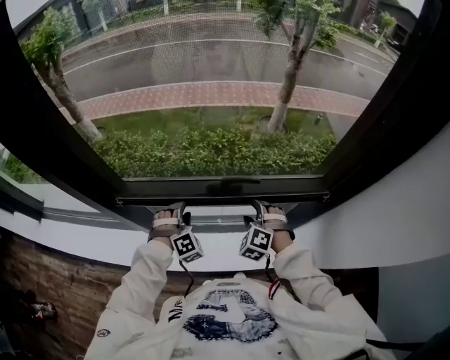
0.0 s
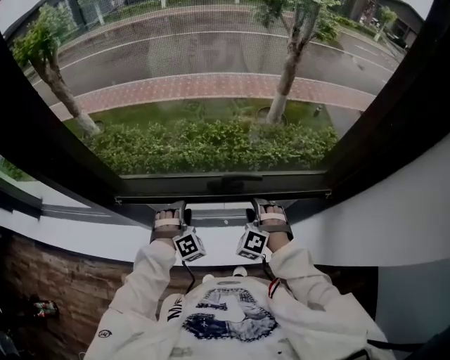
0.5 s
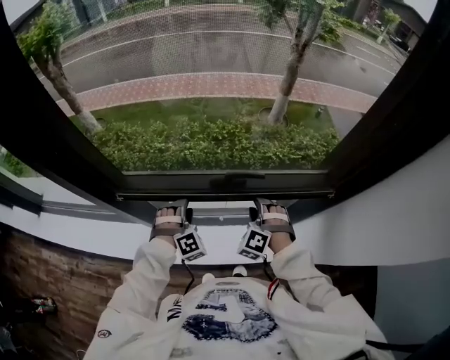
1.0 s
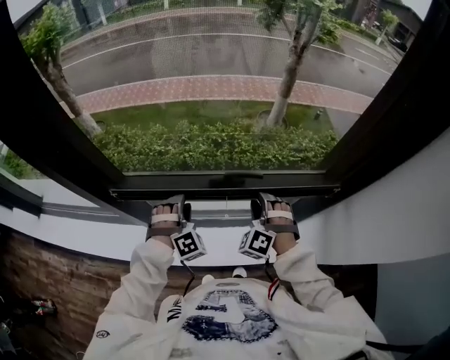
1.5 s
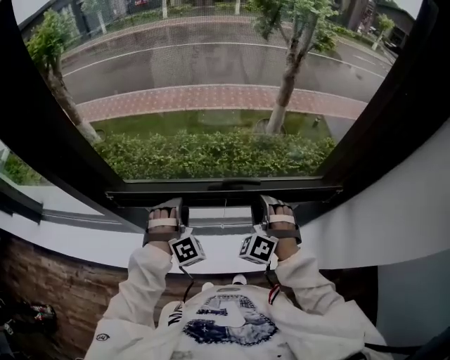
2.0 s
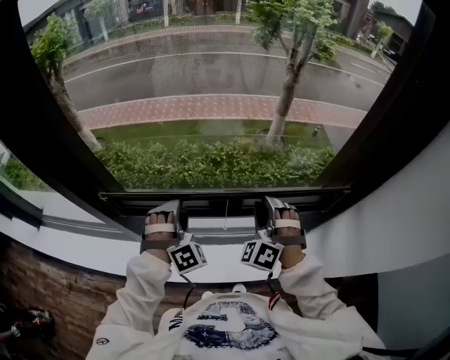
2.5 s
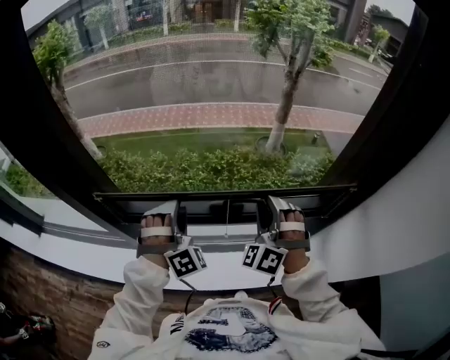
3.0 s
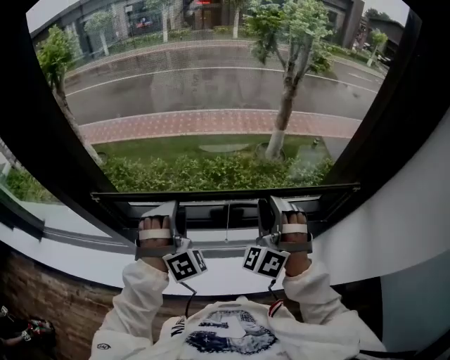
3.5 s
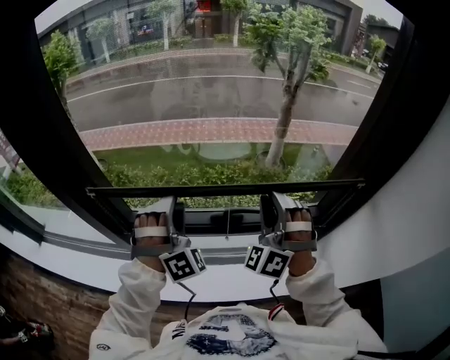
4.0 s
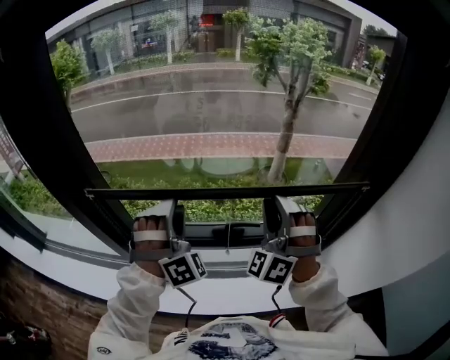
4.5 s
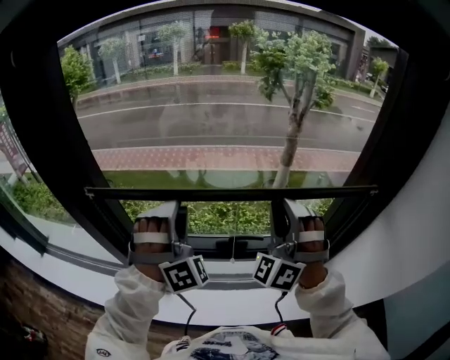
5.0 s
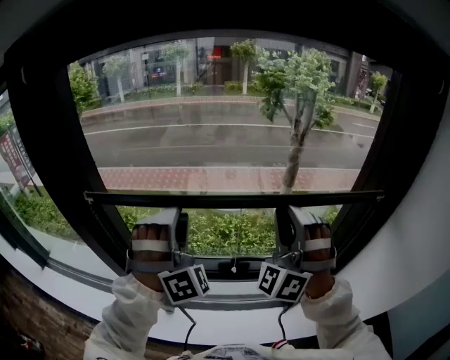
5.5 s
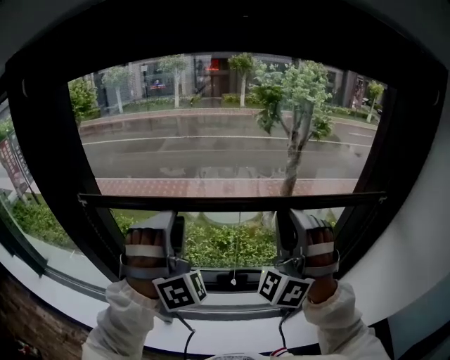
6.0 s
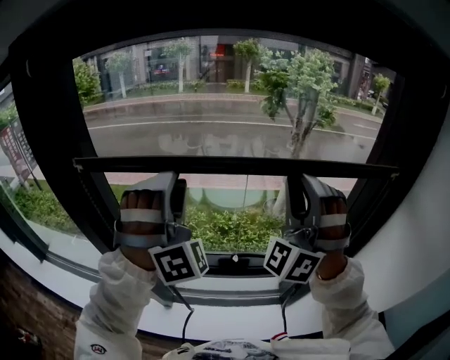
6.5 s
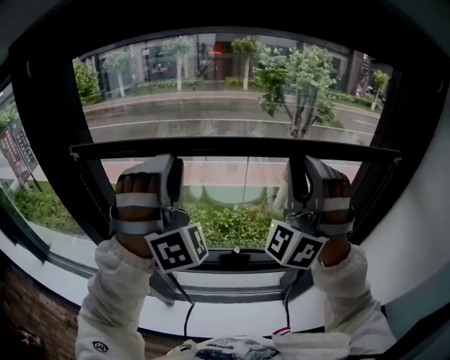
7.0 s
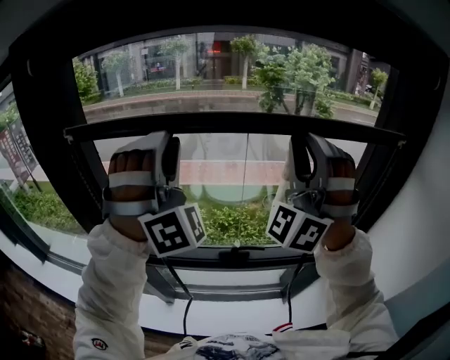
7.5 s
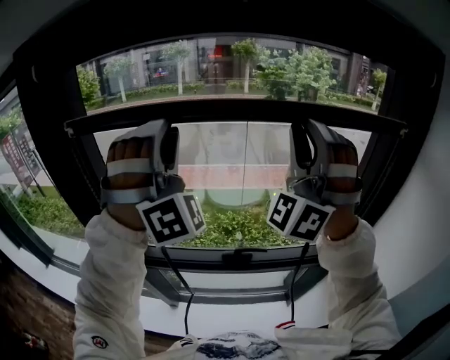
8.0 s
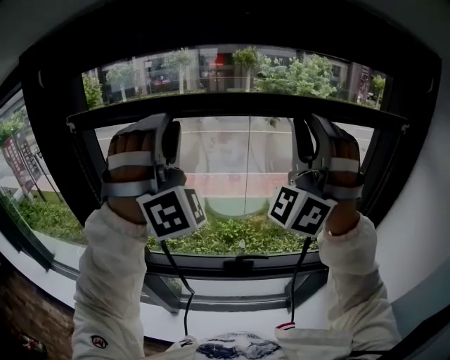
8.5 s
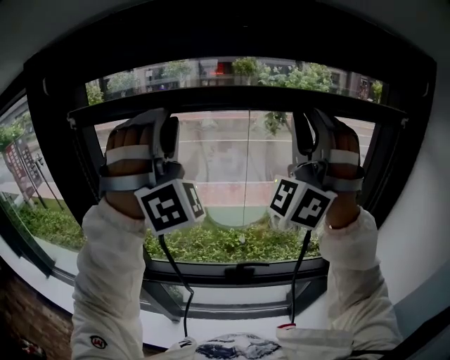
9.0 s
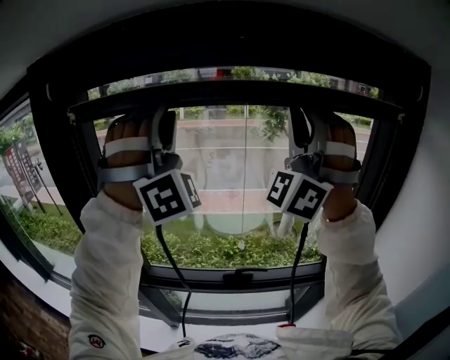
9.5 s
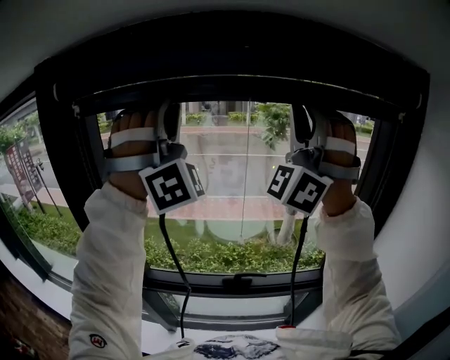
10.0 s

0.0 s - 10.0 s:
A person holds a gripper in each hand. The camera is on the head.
0.0 s - 2.0 s: Both grippers move upward, about 10 cm. The right gripper rotates approximately 20 degrees, and closes its fingers.
2.0 s - 4.0 s: Both grippers travel together upward, about 20 cm. The right gripper changes its angle by about 20 degrees.
4.0 s - 6.0 s: The two grippers go about 10 cm upward.
6.0 s - 8.0 s: Both grippers travel together upward, roughly 20 cm.
8.0 s - 10.0 s: The two grippers go roughly 10 cm upward.

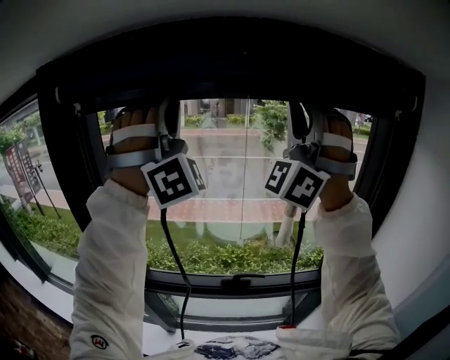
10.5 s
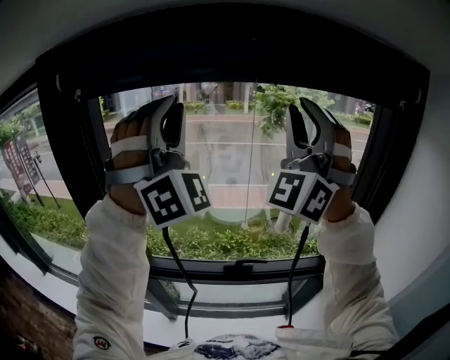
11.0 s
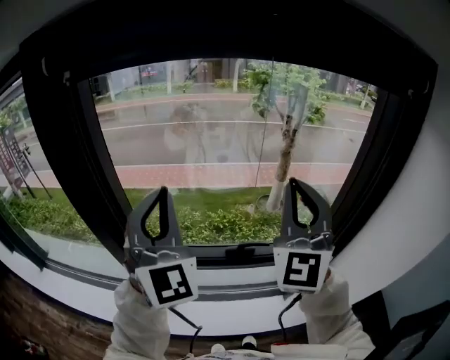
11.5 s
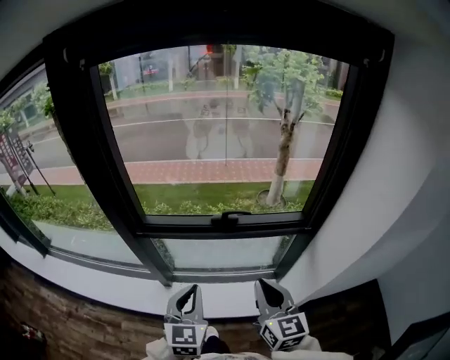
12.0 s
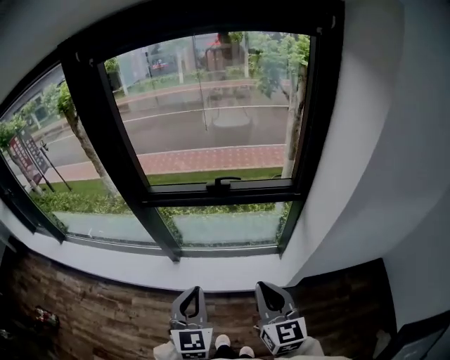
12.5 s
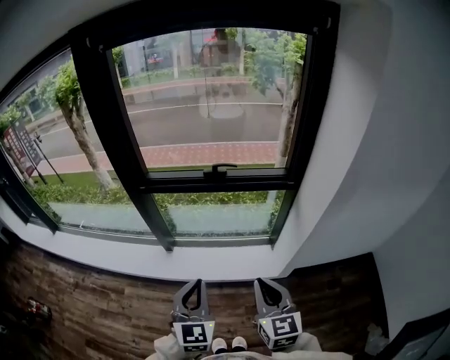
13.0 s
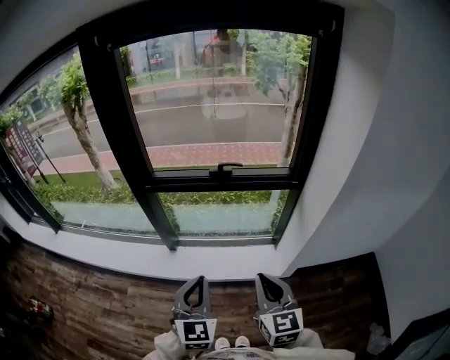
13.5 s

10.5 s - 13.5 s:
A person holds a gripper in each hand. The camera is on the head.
10.5 s - 12.0 s: The grippers both shift downward and backward by about 60 cm. The right gripper twists some 90 degrees clockwise, seen from behind, and closes its fingers. The left gripper rotates around the line of its fingers by some 80 degrees, counterclockwise from behind, and closes its fingers.
12.0 s - 13.5 s: Both grippers travel together backward, approximately 25 cm.

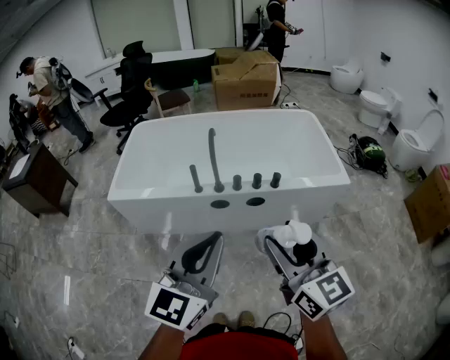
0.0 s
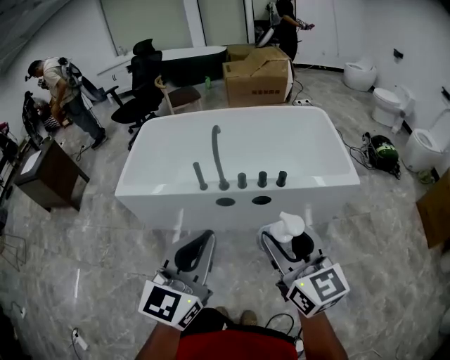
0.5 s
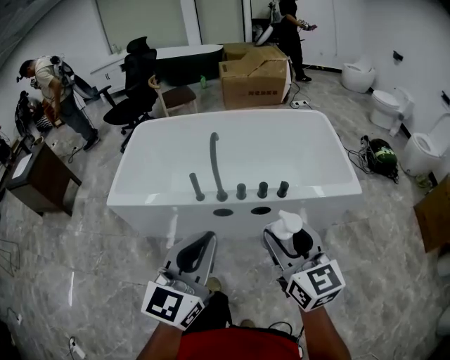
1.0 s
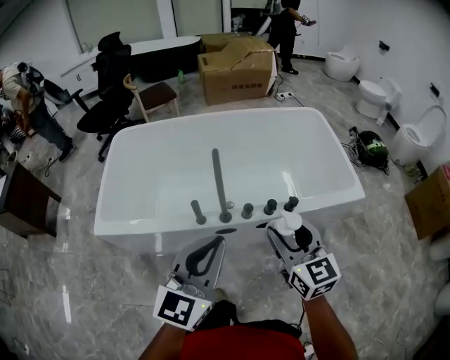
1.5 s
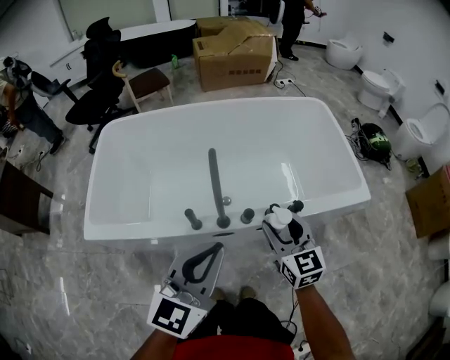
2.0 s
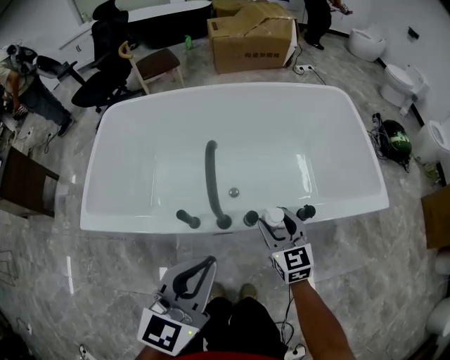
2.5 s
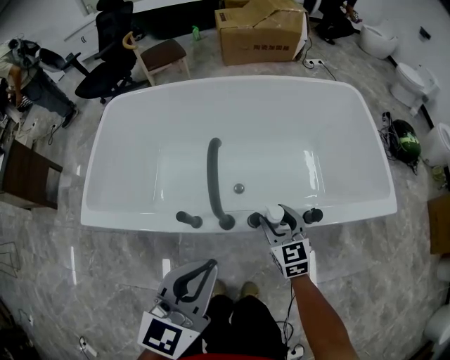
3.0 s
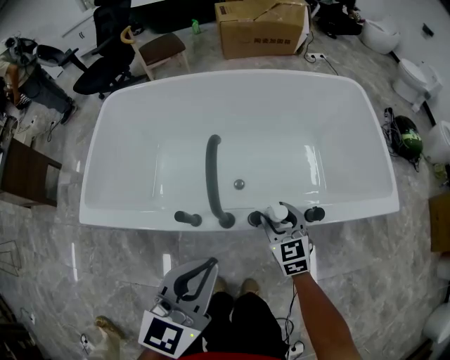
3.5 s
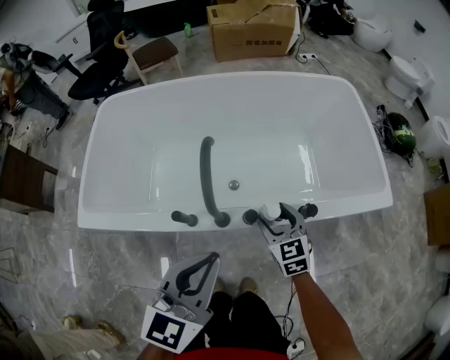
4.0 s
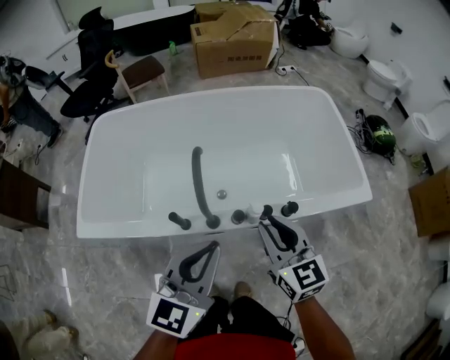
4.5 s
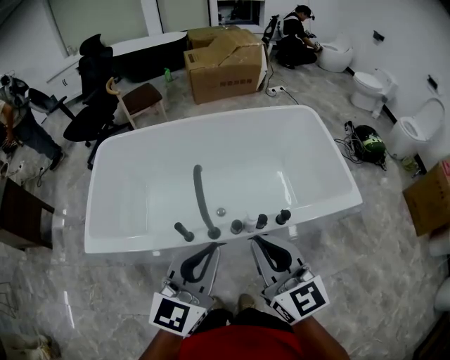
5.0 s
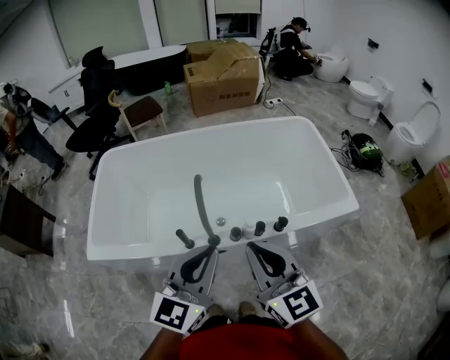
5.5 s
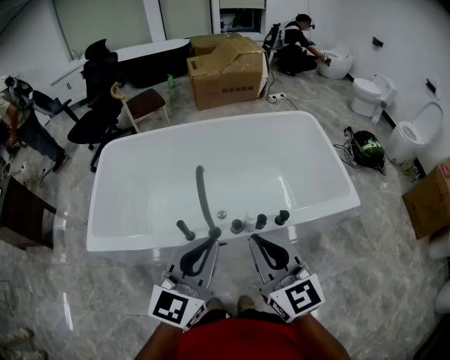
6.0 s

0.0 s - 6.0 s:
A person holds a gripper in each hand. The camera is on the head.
0.0 s - 2.0 s: The left gripper goes roughly 30 cm forward; the right gripper goes about 40 cm forward and downward.
2.0 s - 4.0 s: The right gripper travels downward and forward by approximately 20 cm. Meanwhile the left gripper heads downward and forward, covering some 10 cm.
4.0 s - 6.0 s: The right gripper is displaced upward and backward by about 35 cm, swivels some 30 degrees, and closes. Meanwhile the left gripper travels upward by about 15 cm.

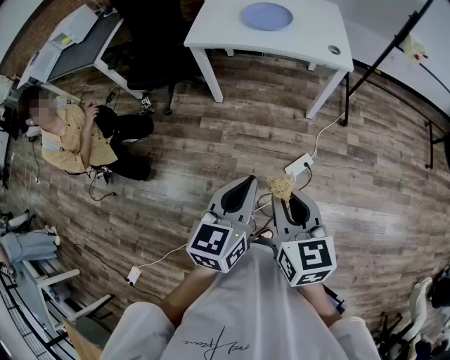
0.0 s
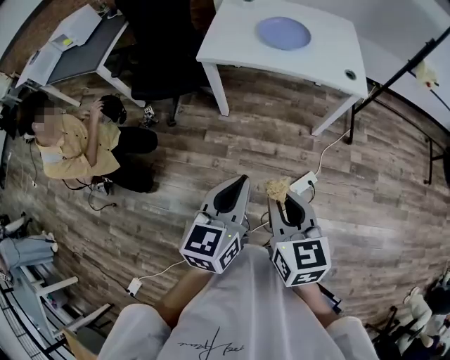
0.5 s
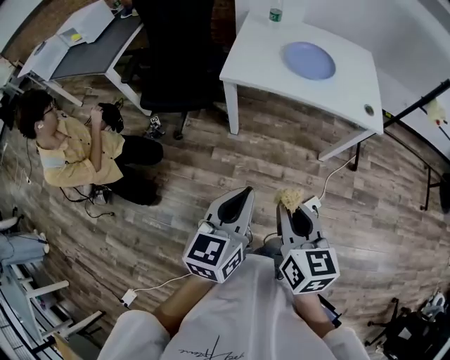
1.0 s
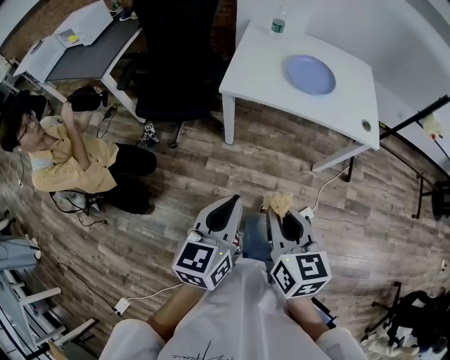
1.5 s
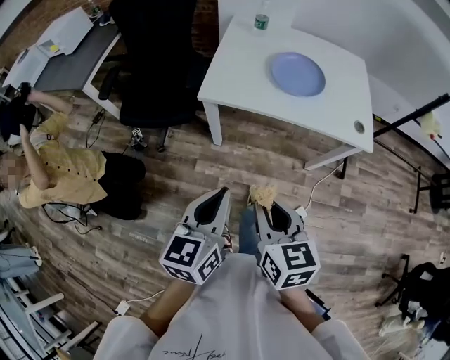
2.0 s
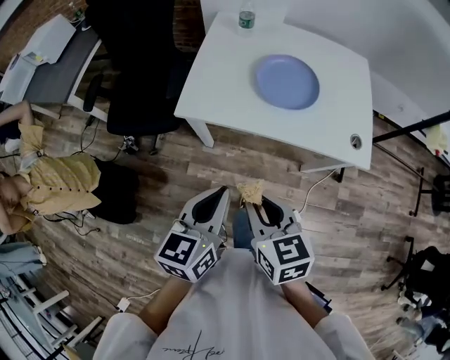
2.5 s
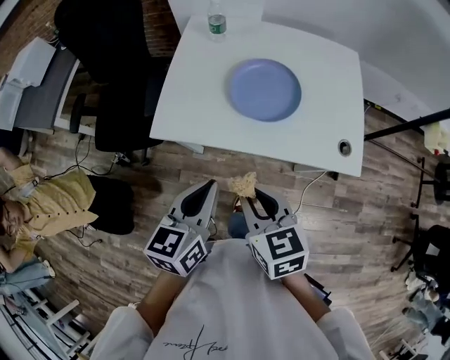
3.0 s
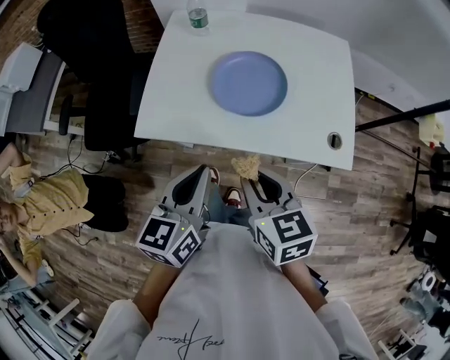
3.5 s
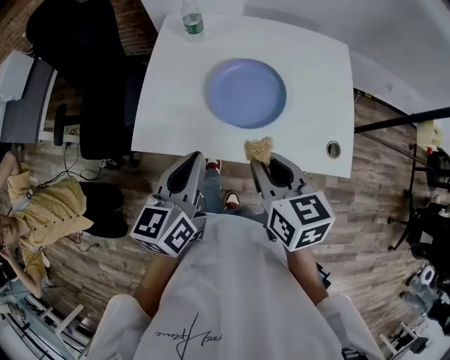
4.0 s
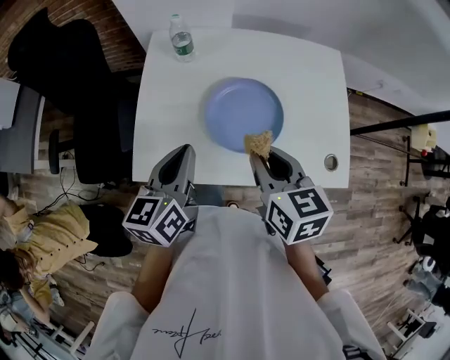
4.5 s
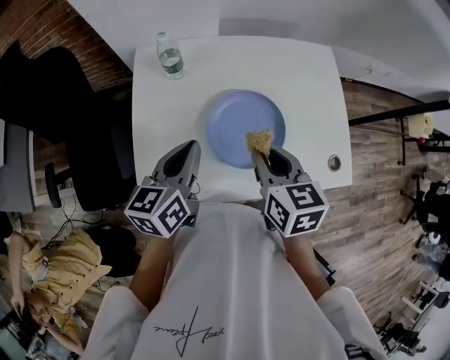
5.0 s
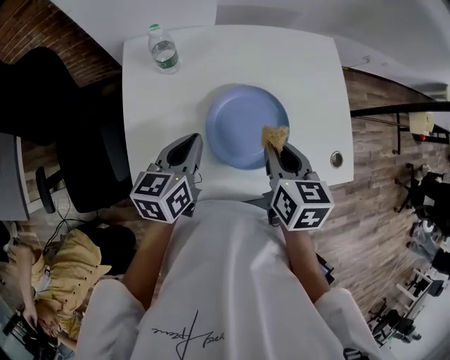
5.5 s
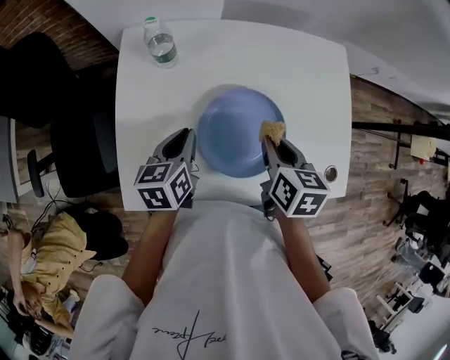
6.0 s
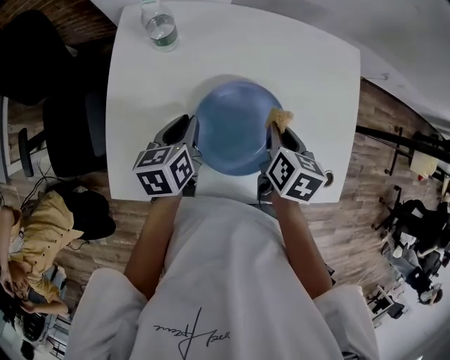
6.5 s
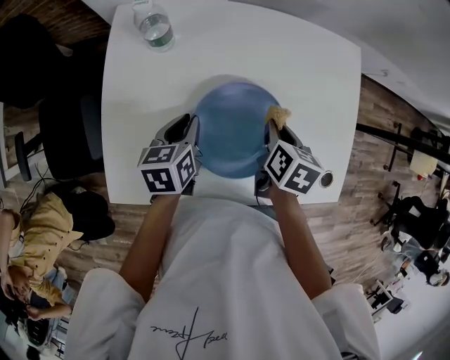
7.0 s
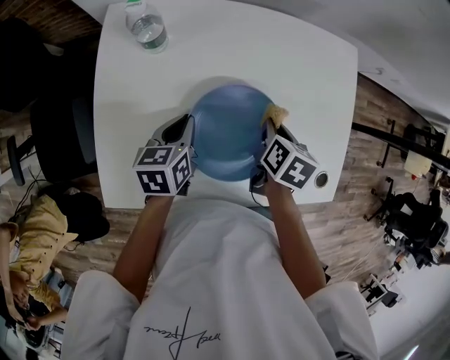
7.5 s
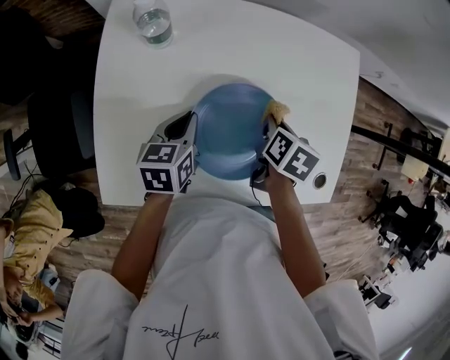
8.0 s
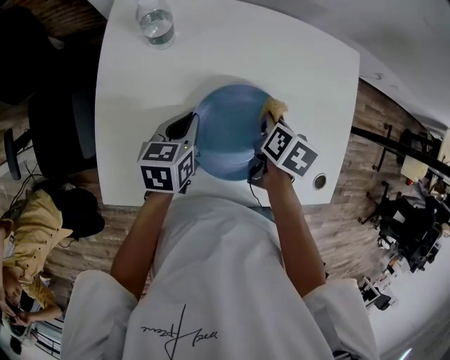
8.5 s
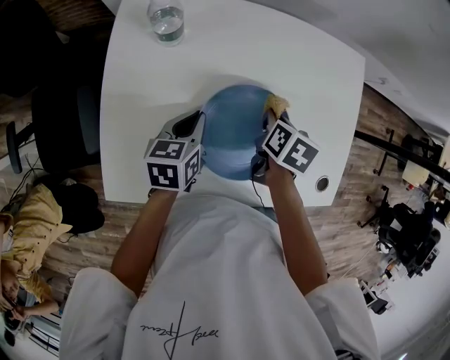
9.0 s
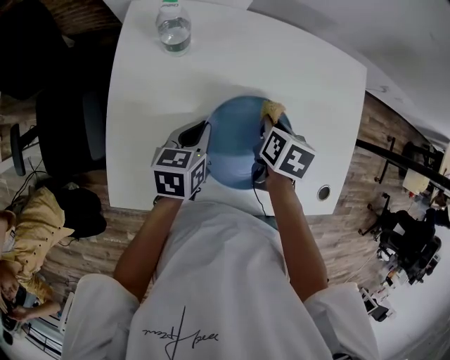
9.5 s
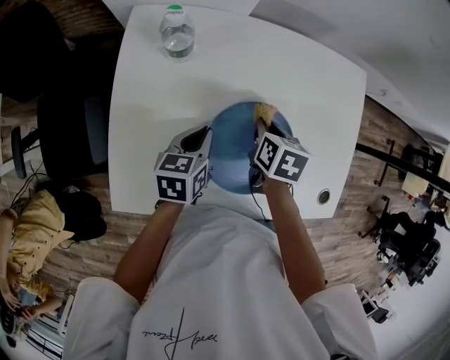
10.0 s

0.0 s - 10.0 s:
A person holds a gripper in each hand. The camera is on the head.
0.0 s - 2.0 s: Both grippers travel together forward and to the left, roughly 35 cm.
2.0 s - 4.0 s: Both grippers move forward and to the right, some 35 cm.
4.0 s - 6.0 s: Both grippers travel together forward and downward, some 25 cm. The left gripper rotates some 20 degrees; the right gripper turns by some 30 degrees.
6.0 s - 8.0 s: The right gripper moves downward and forward, approximately 10 cm, and turns by approximately 20 degrees, while the left gripper goes about 5 cm downward.
8.0 s - 10.0 s: The right gripper is displaced to the left by roughly 5 cm.
